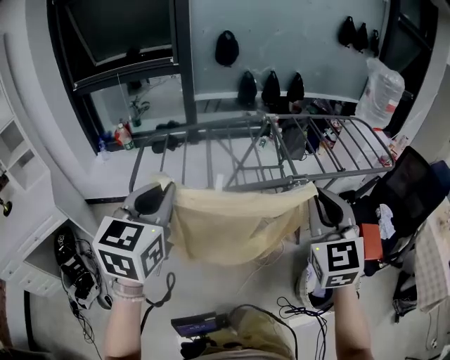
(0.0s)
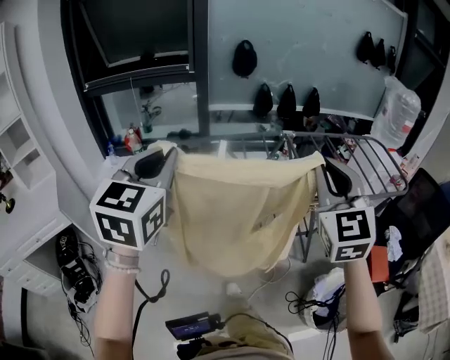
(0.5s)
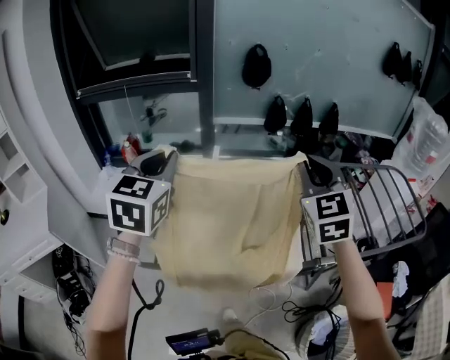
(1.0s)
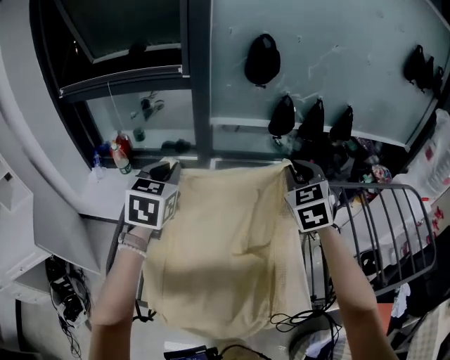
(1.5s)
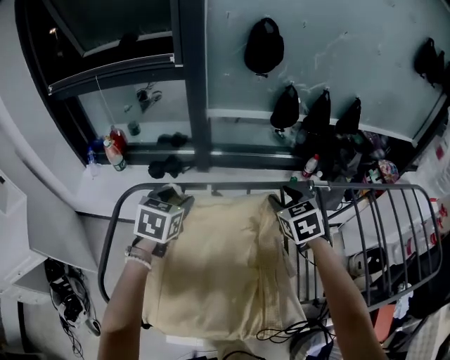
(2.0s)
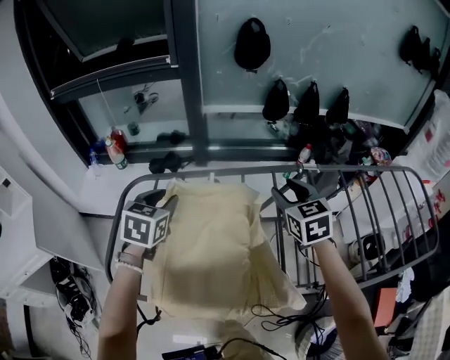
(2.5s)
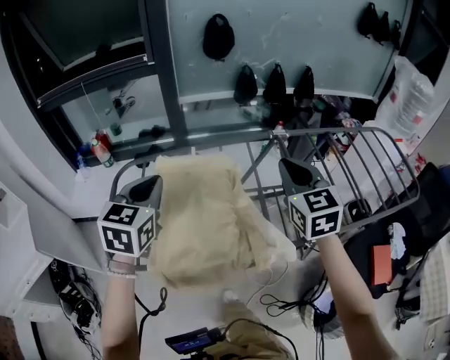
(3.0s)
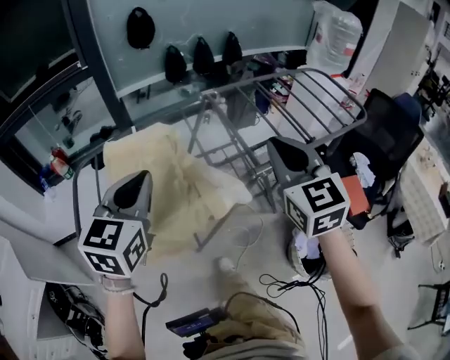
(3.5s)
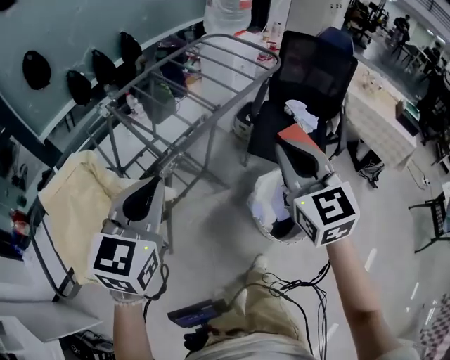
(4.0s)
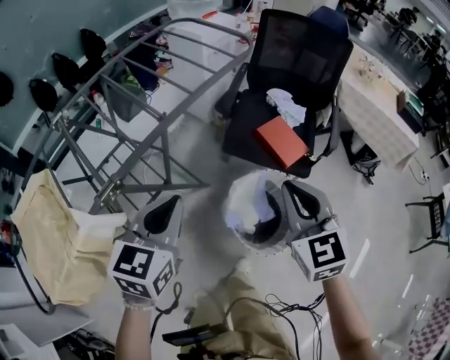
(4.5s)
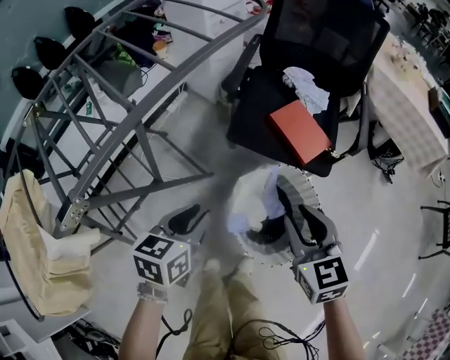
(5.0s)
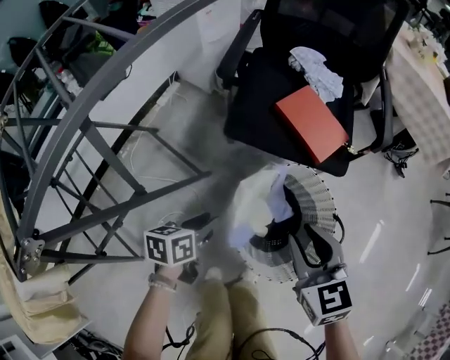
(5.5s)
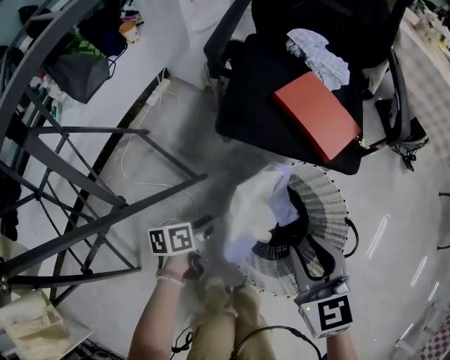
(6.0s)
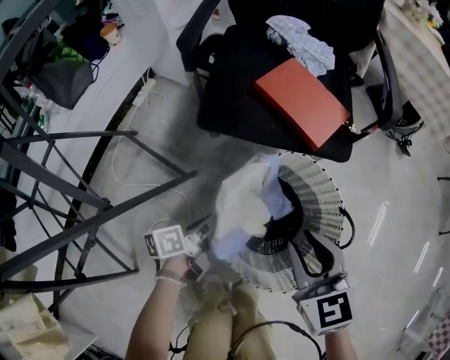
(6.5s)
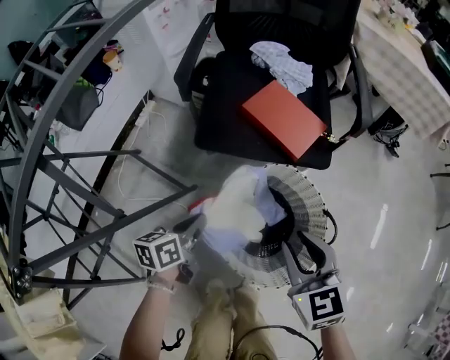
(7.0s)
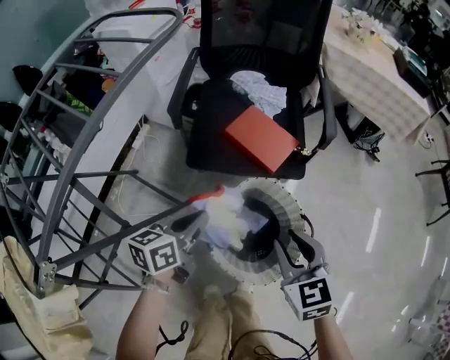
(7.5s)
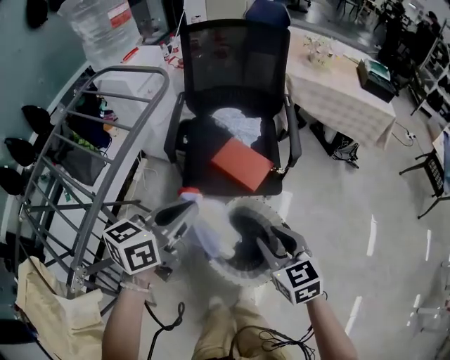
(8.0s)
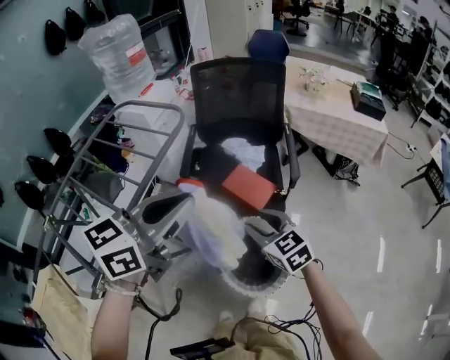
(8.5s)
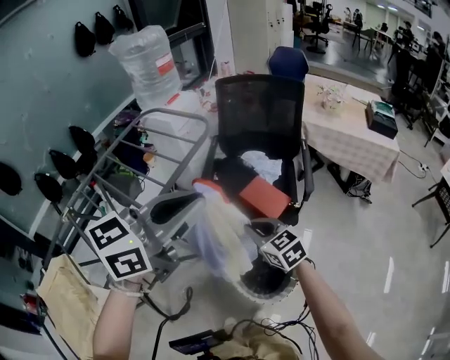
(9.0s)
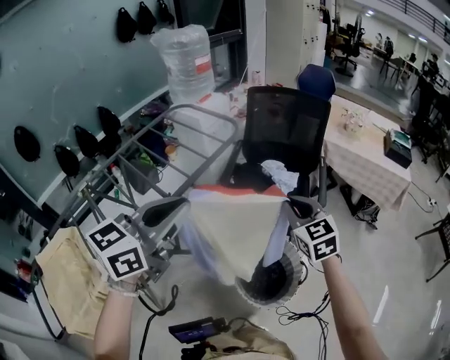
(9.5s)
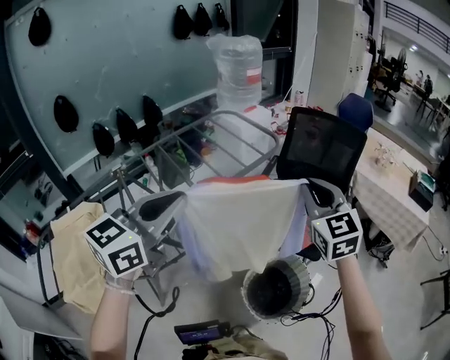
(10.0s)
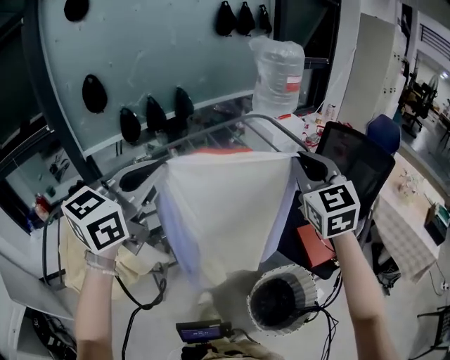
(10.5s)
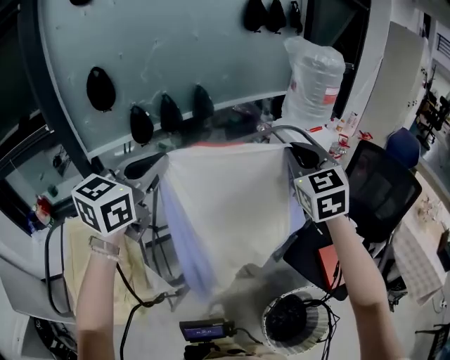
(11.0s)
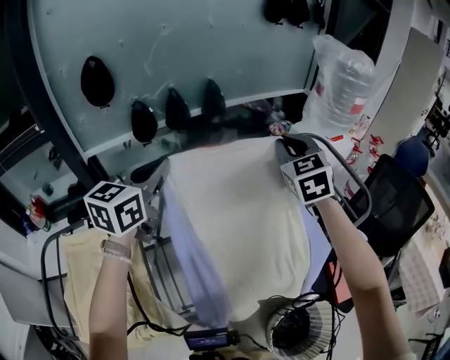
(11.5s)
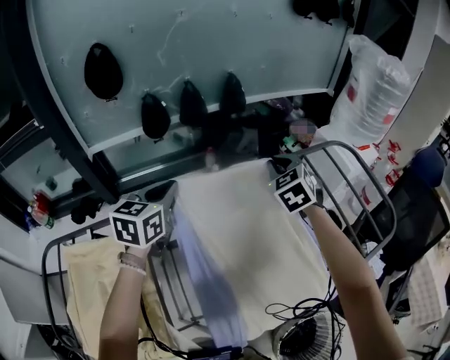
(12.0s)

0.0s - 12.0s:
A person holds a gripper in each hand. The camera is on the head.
0.0s - 2.0s: The two grippers travel together, forward, some 60 cm. The left gripper heads downward, covering some 25 cm, swivels approximately 30 degrees, and opens. Meanwhile the right gripper tips its fingers downward by approximately 30 degrees, and opens up.
2.0s - 4.0s: Both grippers are carried roughly 60 cm. The left gripper swivels some 50 degrees, and closes. The right gripper turns by about 50 degrees, and closes its fingers.
4.0s - 6.0s: The grippers both shift downward by about 60 cm. The left gripper twists roughly 60 degrees counterclockwise, seen from behind, and opens up. Meanwhile the right gripper changes its angle by approximately 30 degrees, and opens its fingers.
6.0s - 8.0s: The left gripper travels upward by about 50 cm, twists some 40 degrees clockwise, seen from behind, and closes its fingers; the right gripper moves upward, about 25 cm.
8.0s - 10.0s: The left gripper moves upward, to the left and backward, roughly 35 cm, and turns by some 40 degrees. The right gripper heads upward, covering approximately 35 cm, turns by roughly 40 degrees, and closes.
10.0s - 12.0s: Both grippers are carried roughly 60 cm. The left gripper turns by approximately 40 degrees; the right gripper changes its angle by about 40 degrees.

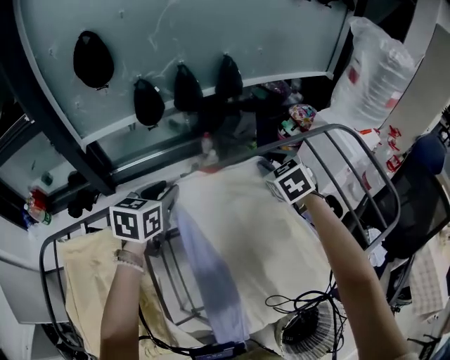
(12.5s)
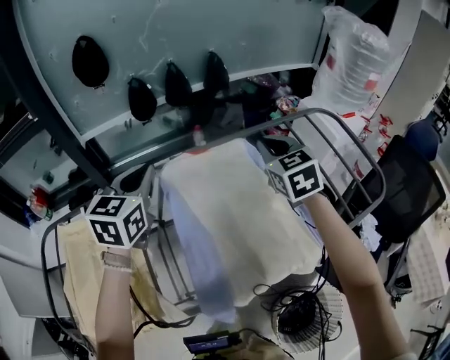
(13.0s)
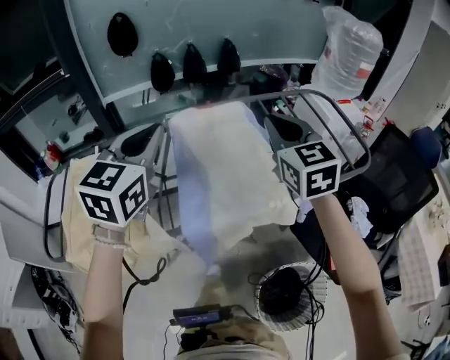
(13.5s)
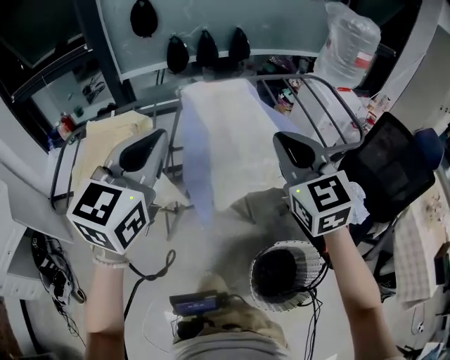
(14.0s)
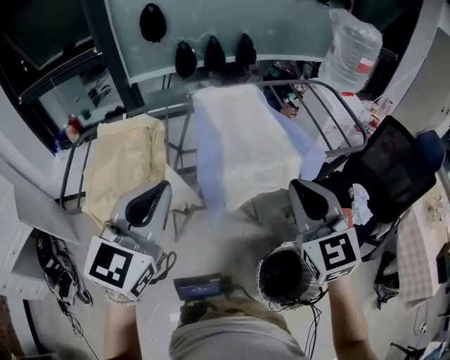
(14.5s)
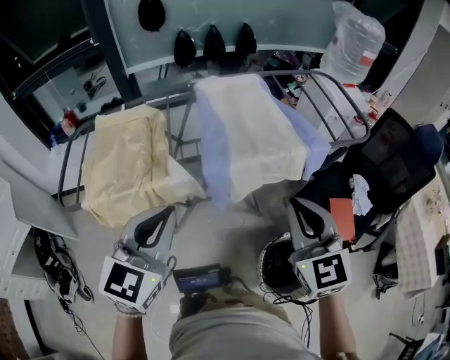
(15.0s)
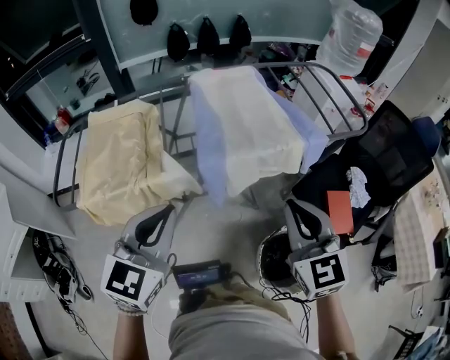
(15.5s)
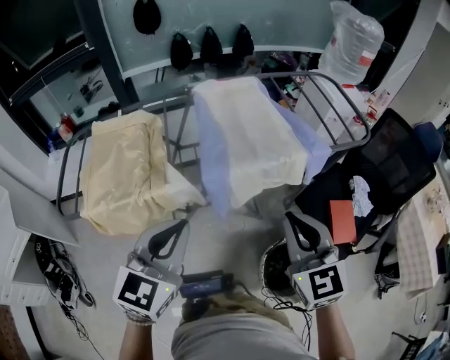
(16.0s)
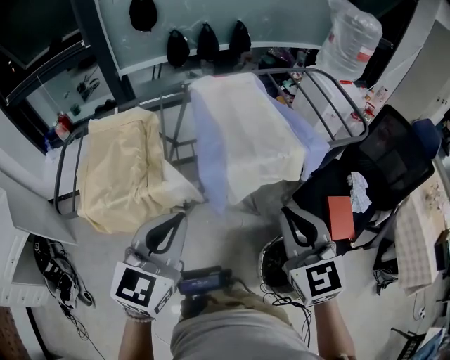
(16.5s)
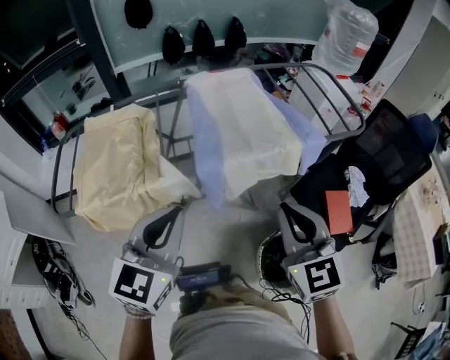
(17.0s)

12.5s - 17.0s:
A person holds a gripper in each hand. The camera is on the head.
12.5s - 14.5s: Both grippers are carried backward, roughly 60 cm. The right gripper angles its fingers upward, by about 30 degrees, and closes up; the left gripper rotates some 30 degrees, and closes up.
14.5s - 17.0s: The two grippers go some 5 cm downward.

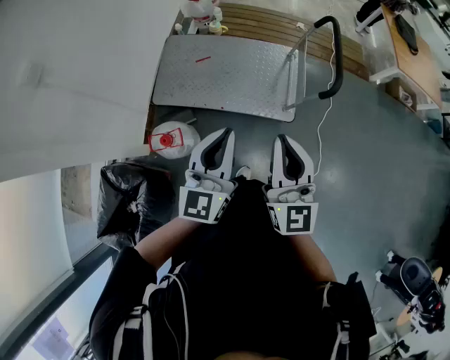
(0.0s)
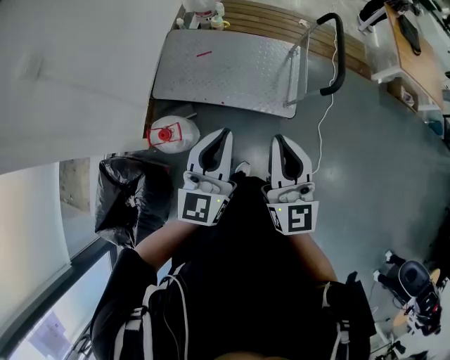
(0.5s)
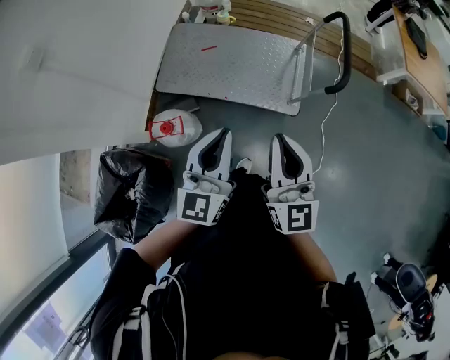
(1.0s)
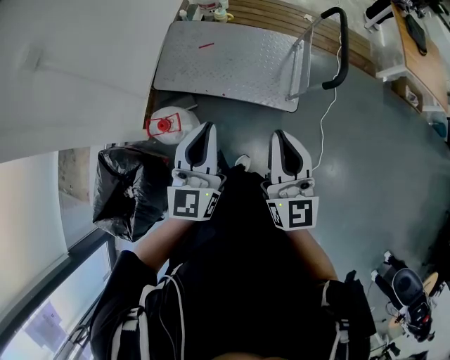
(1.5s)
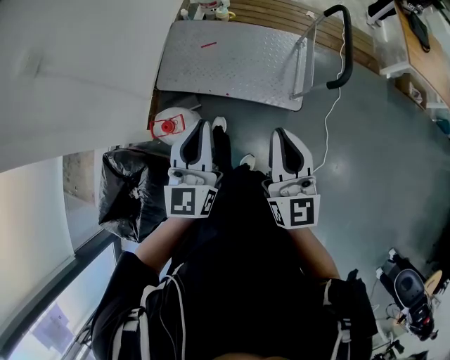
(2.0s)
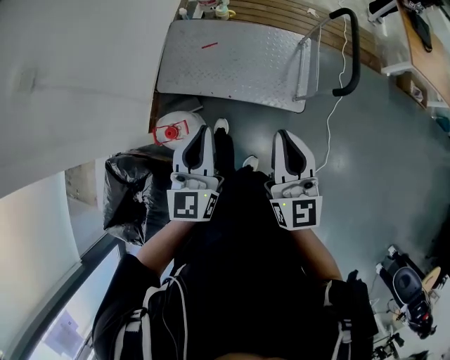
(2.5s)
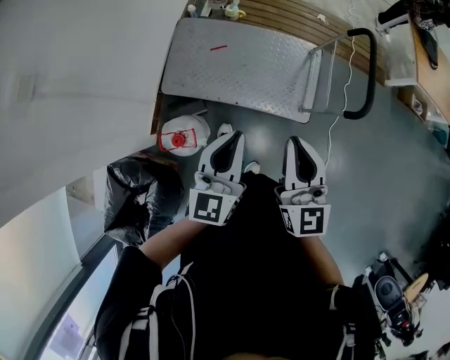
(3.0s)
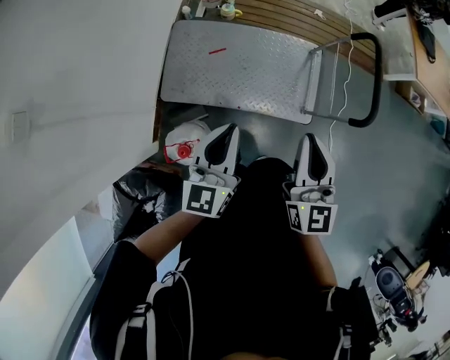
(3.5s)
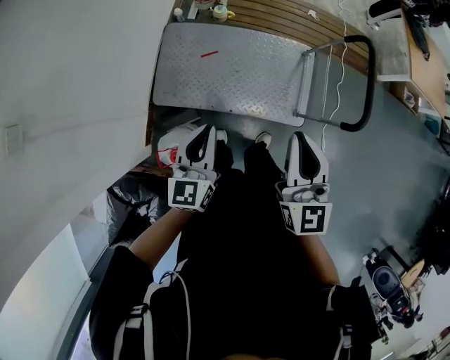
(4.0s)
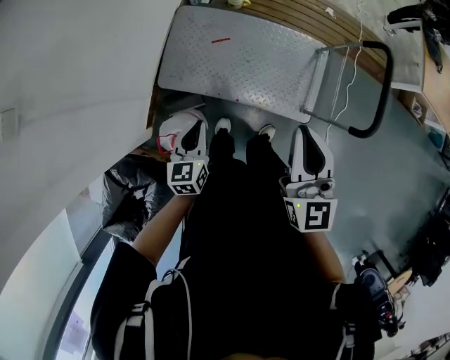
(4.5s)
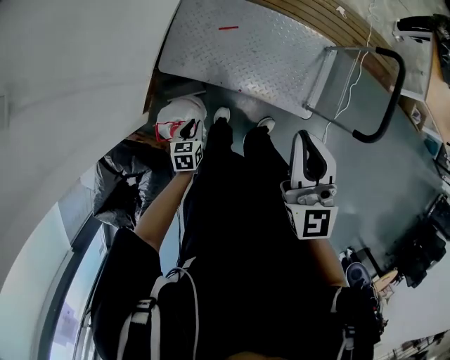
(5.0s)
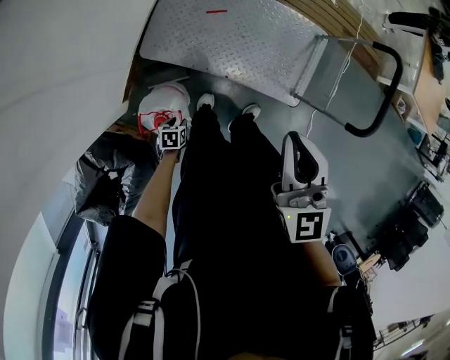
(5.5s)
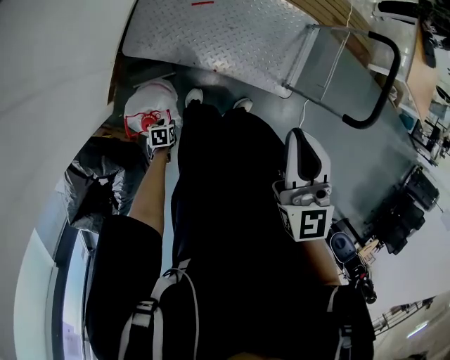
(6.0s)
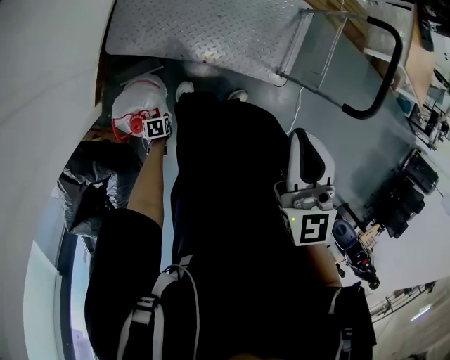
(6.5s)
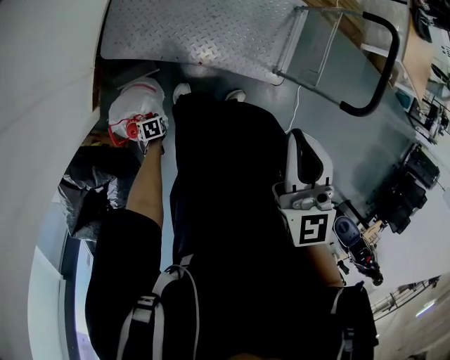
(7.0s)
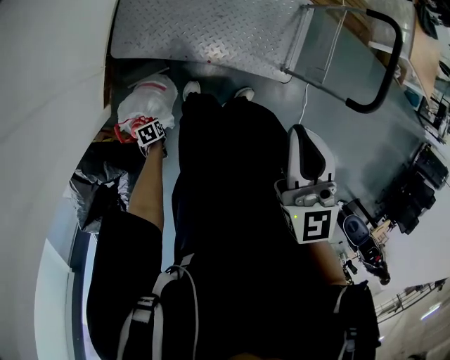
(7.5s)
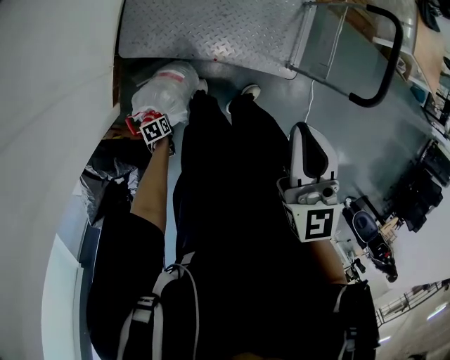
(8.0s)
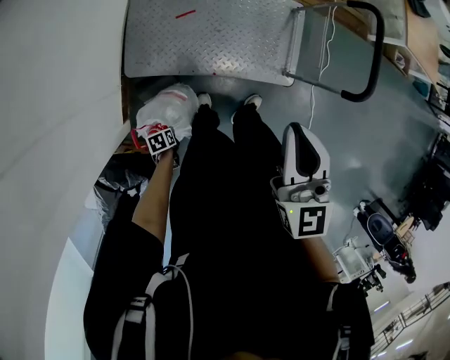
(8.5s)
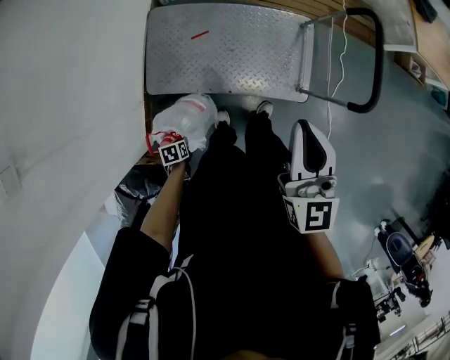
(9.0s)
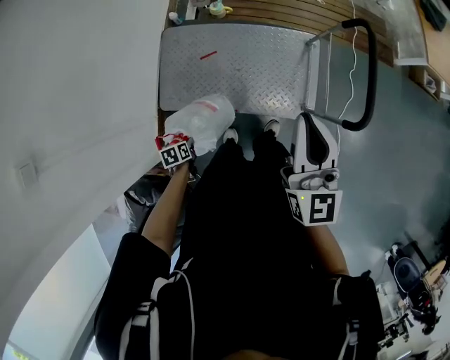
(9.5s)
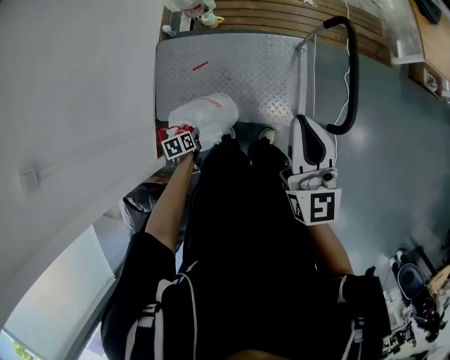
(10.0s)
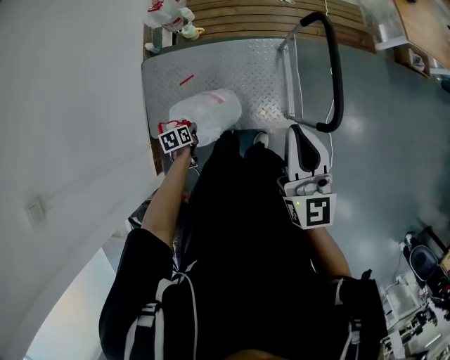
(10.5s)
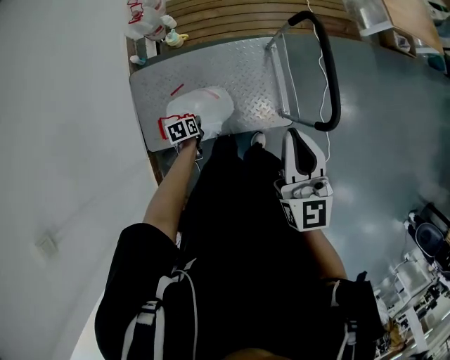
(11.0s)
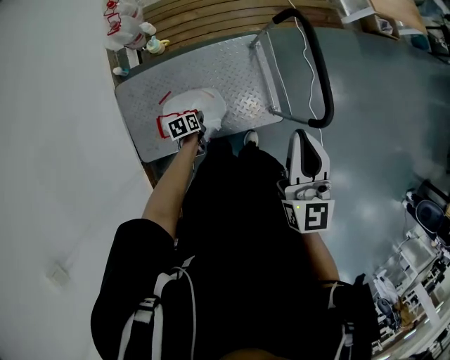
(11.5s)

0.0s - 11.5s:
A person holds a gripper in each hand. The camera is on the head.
0.0s - 2.0s: There are only small adjustments of the grippers.
2.0s - 4.0s: The left gripper is displaced forward and to the left by about 25 cm. The right gripper goes some 25 cm forward.
4.0s - 6.0s: The left gripper moves downward, about 50 cm, tilts its fingers roughly 60 degrees downward, and opens its fingers; the right gripper is displaced to the left and downward by roughly 15 cm.
6.0s - 7.5s: The left gripper shifts by approximately 5 cm, and closes up.
7.5s - 9.5s: The left gripper heads upward, covering approximately 20 cm. The right gripper shifts by approximately 20 cm, and changes its angle by about 30 degrees.
9.5s - 11.5s: The right gripper ends up about 10 cm from where it was, and changes its angle by about 20 degrees. The left gripper shifts by approximately 35 cm, and swivels about 20 degrees.
